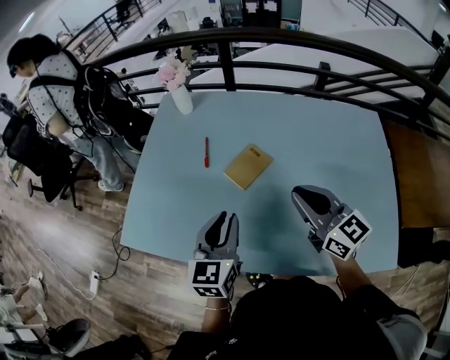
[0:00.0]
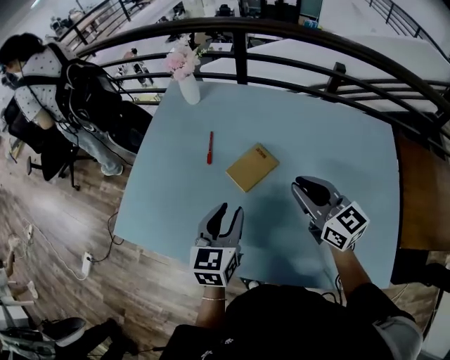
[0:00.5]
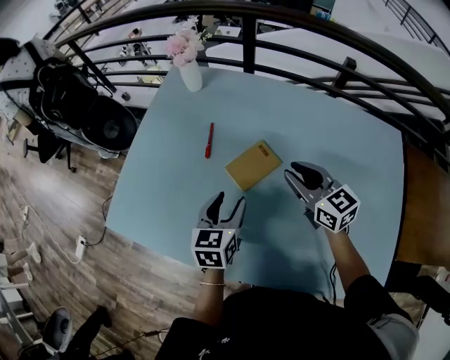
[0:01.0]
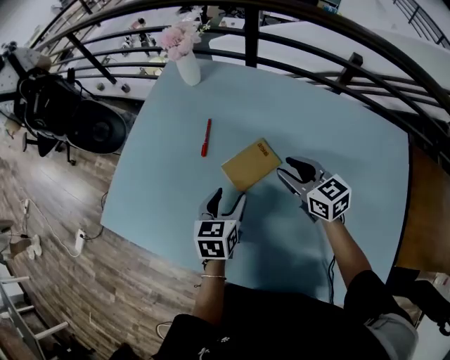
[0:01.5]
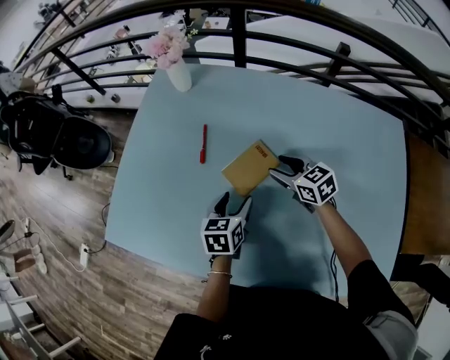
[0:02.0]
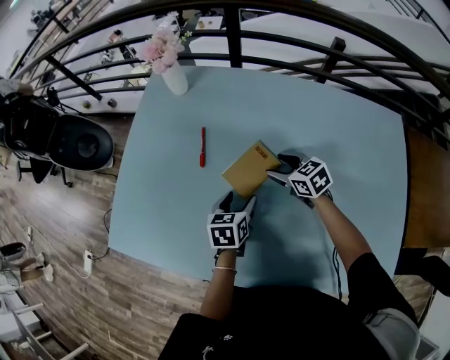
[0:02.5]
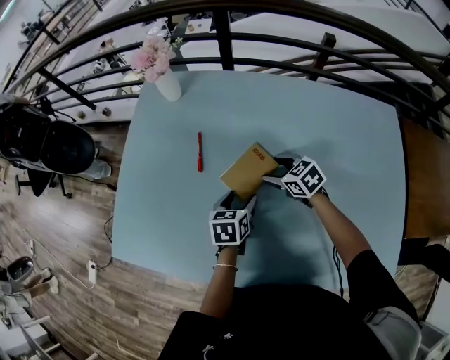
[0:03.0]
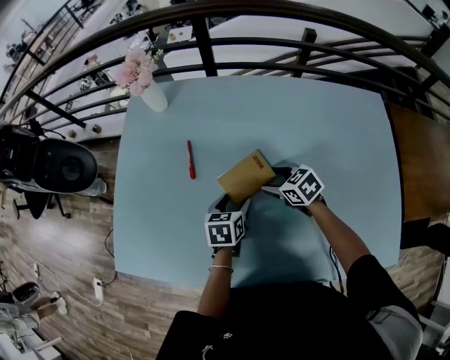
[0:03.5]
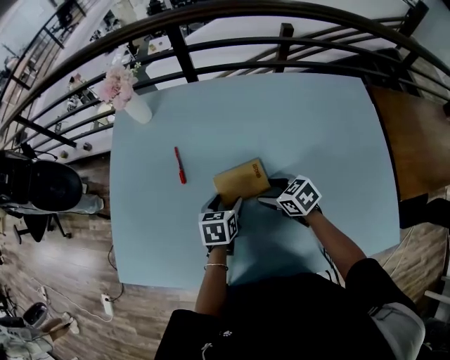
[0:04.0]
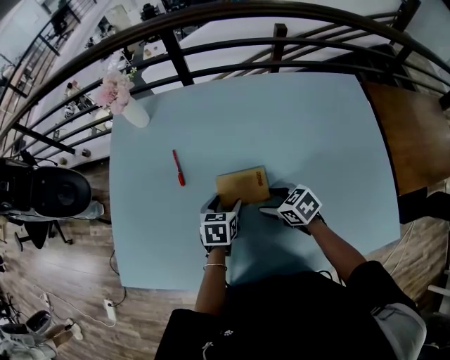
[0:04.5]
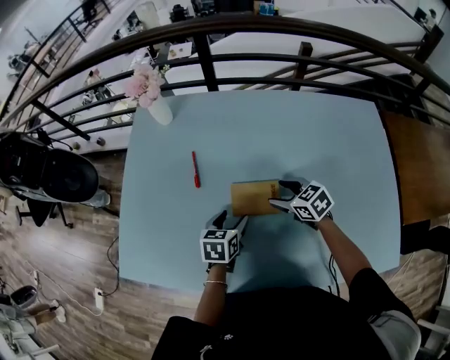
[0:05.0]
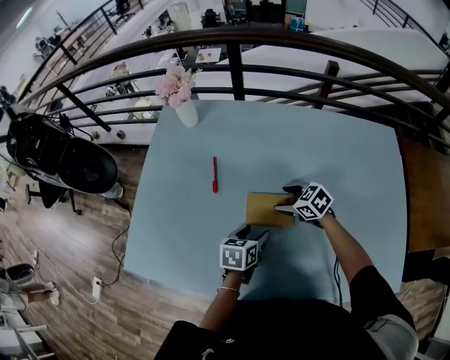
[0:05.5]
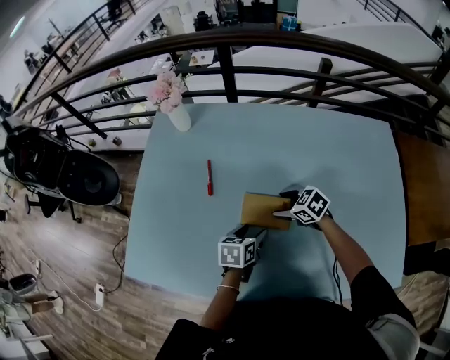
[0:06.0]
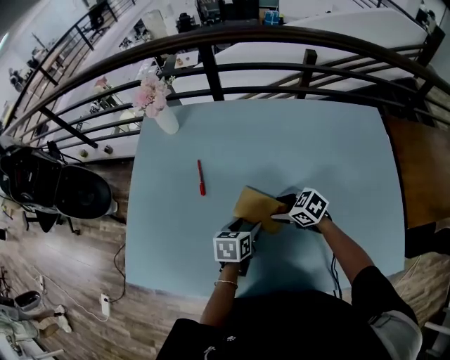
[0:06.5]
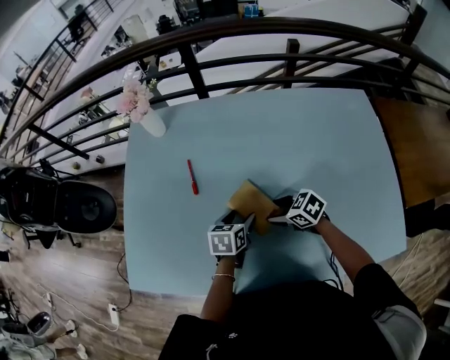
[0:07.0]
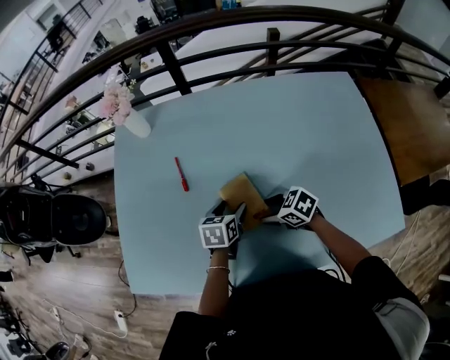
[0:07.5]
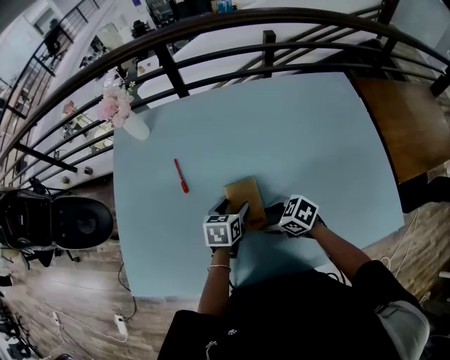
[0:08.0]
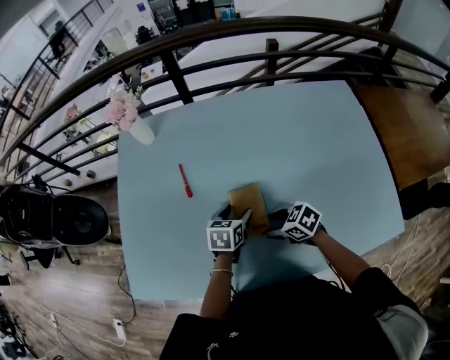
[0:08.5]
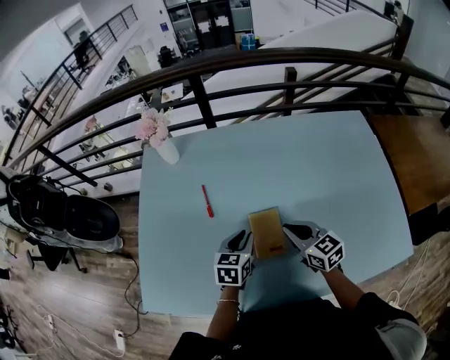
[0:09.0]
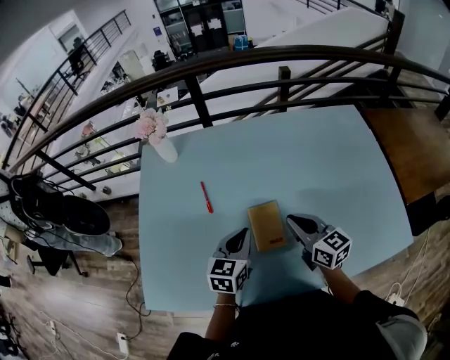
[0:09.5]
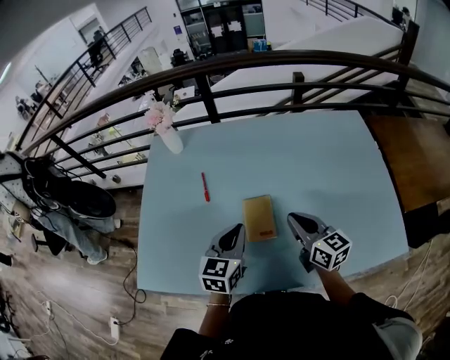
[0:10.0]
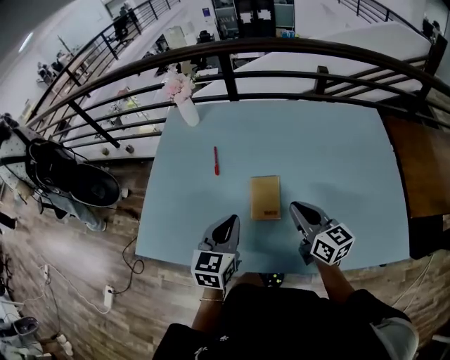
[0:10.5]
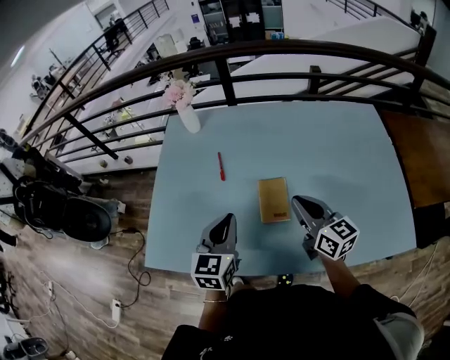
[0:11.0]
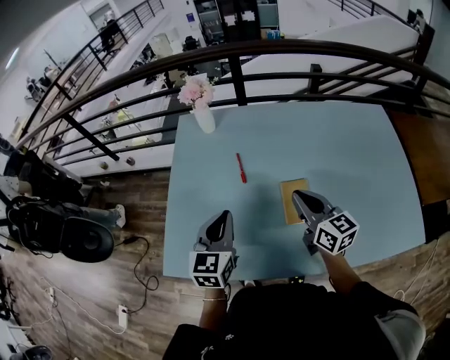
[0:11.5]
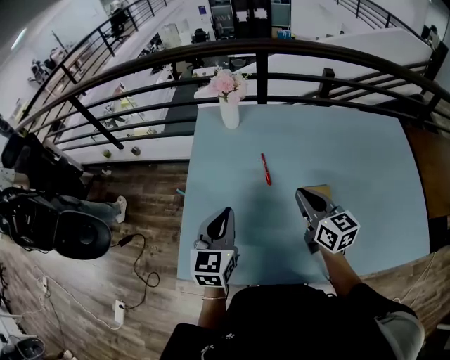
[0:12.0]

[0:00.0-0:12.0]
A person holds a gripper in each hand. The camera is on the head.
0:00.0 to 0:02.0: The two grippers go some 25 cm downward and forward. The right gripper rotates approximately 30 degrees, and opens up, while the left gripper rotates some 30 degrees, and opens.
0:02.0 to 0:04.0: The right gripper heads backward, covering some 10 cm.
0:04.0 to 0:06.0: The left gripper is displaced backward by approximately 5 cm.
0:06.0 to 0:08.0: The right gripper moves backward, approximately 10 cm.
0:08.0 to 0:10.0: The right gripper shifts roughly 20 cm upward, points its fingers about 40 degrees further upward, and closes its fingers, while the left gripper is displaced upward and backward by approximately 20 cm, turns by approximately 30 degrees, and closes.
0:10.0 to 0:12.0: The right gripper is displaced to the left and forward by roughly 25 cm, while the left gripper goes about 30 cm to the left.

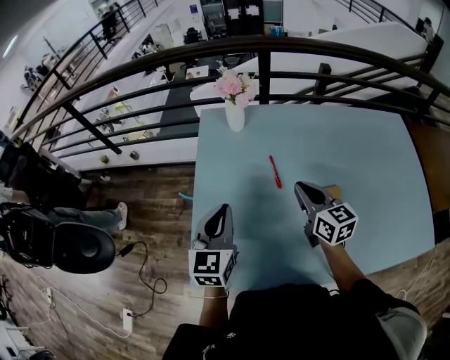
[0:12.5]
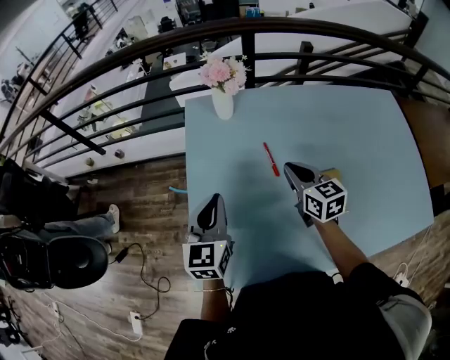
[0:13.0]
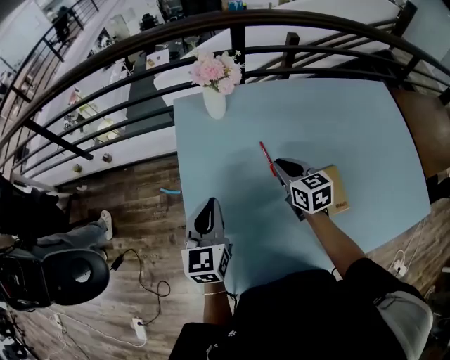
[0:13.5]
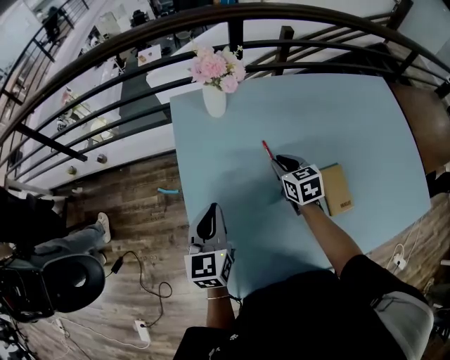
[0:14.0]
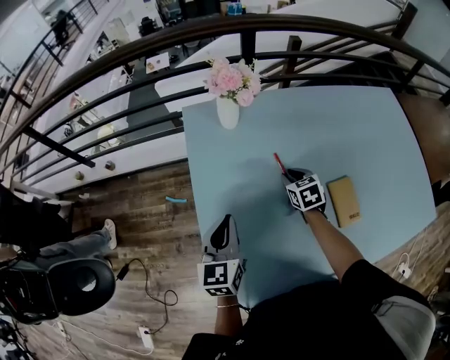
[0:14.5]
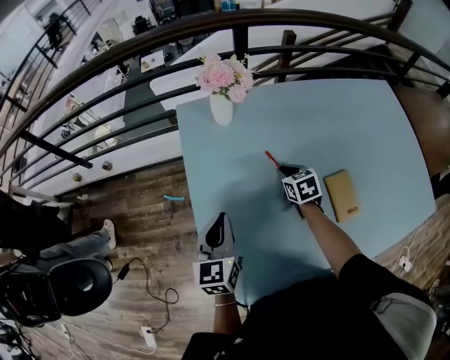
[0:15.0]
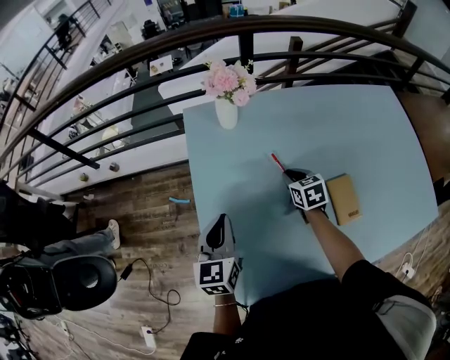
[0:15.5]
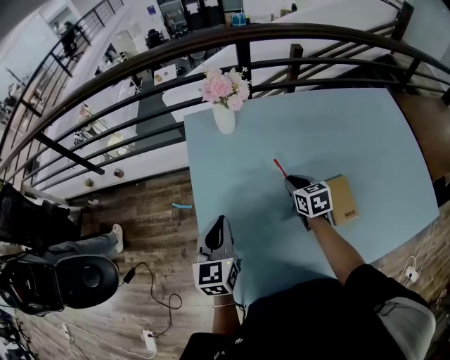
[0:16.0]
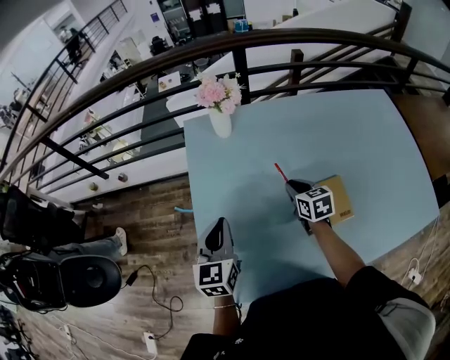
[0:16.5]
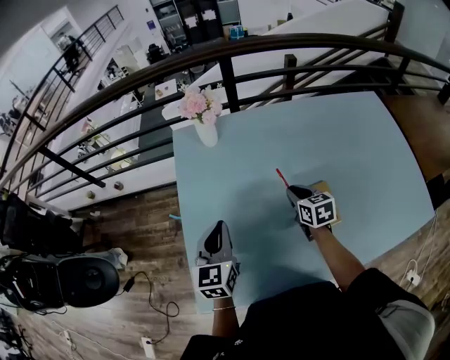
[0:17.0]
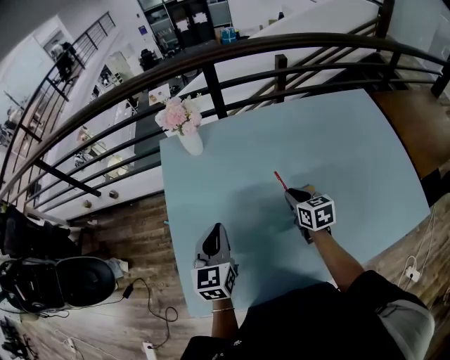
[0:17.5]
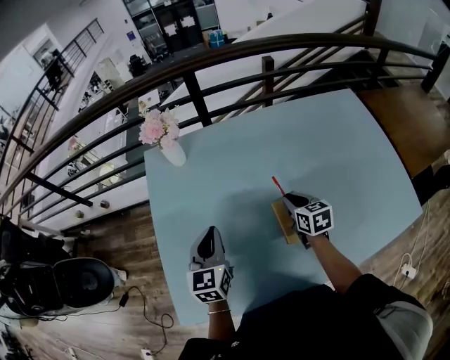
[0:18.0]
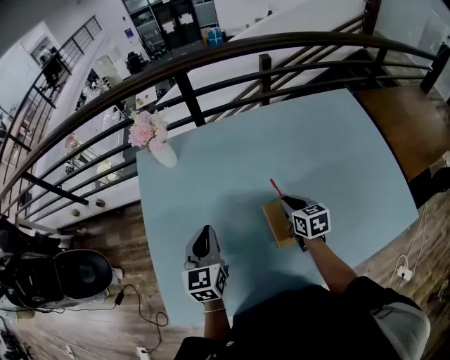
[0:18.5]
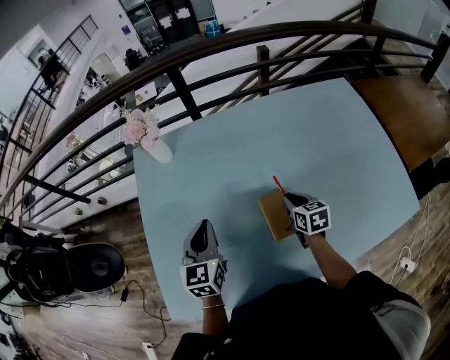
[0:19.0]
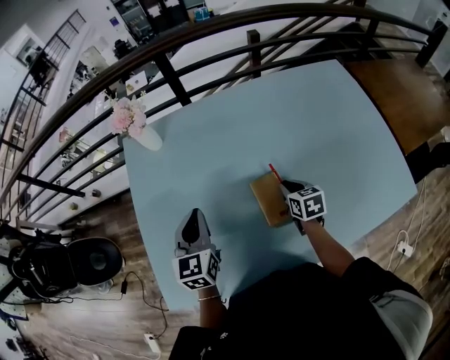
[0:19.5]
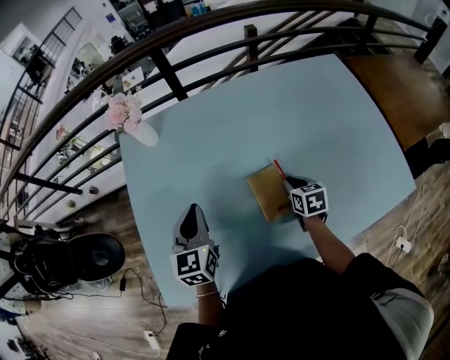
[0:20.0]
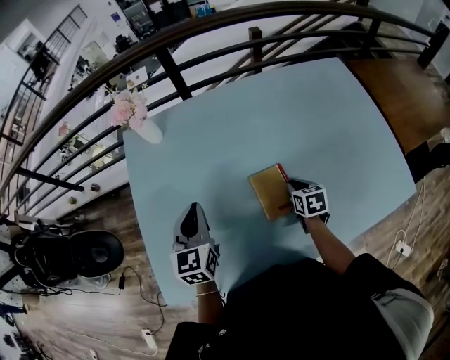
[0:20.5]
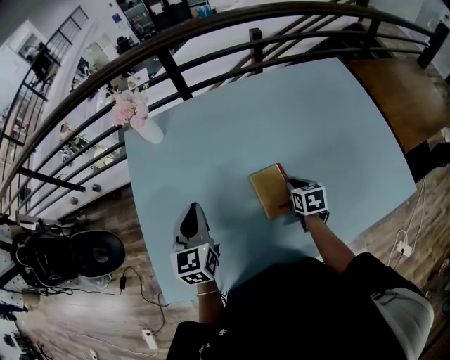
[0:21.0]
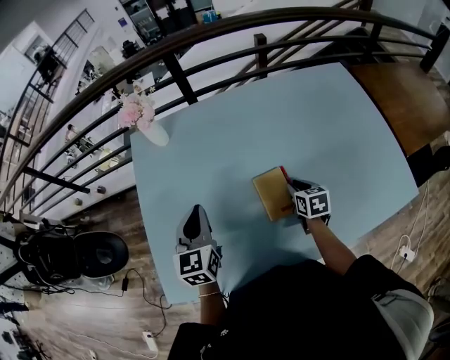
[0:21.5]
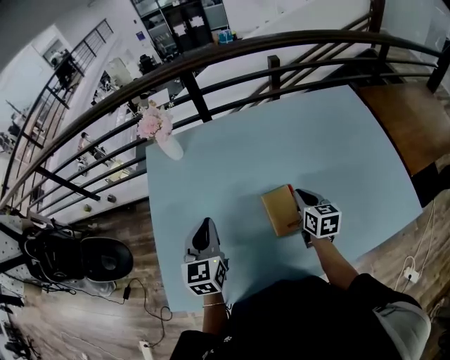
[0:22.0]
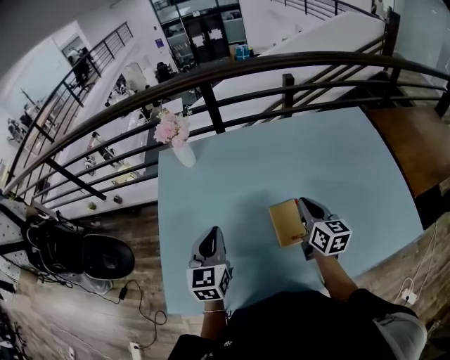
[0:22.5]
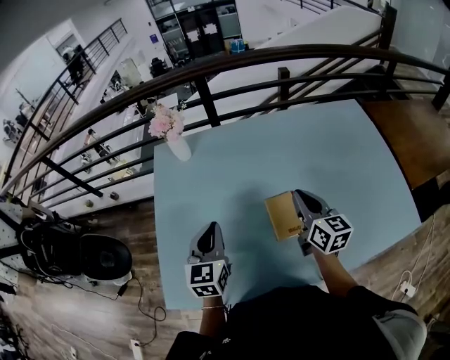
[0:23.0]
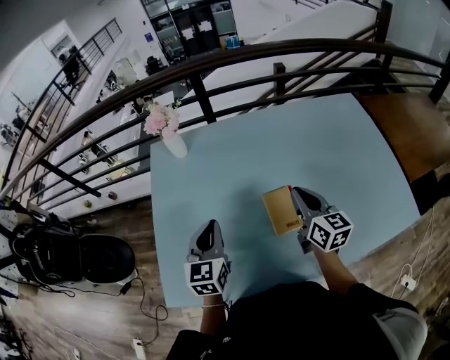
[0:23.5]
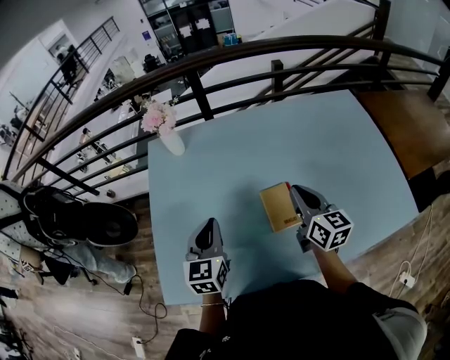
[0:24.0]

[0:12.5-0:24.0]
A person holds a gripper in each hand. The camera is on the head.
0:12.5 to 0:14.5: The right gripper shifts some 20 cm downward and forward, and angles its fingers downward, by approximately 30 degrees. Meanwhile the left gripper goes roughly 10 cm forward, downward and to the left.
0:14.5 to 0:16.5: The right gripper travels backward and upward by approximately 10 cm. Meanwhile the left gripper changes place by some 5 cm.
0:16.5 to 0:18.5: Both grippers move to the right, approximately 20 cm.
0:18.5 to 0:20.0: The right gripper moves to the right and downward, roughly 10 cm.
0:20.0 to 0:22.0: The right gripper moves upward, roughly 10 cm.
0:22.0 to 0:24.0: The right gripper heads upward, covering some 10 cm.

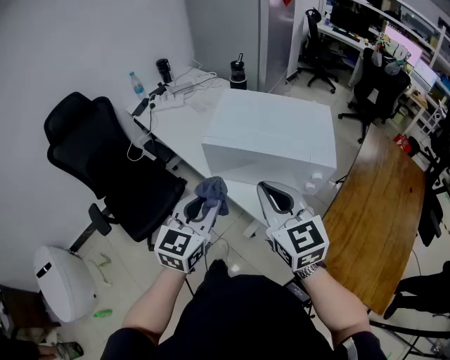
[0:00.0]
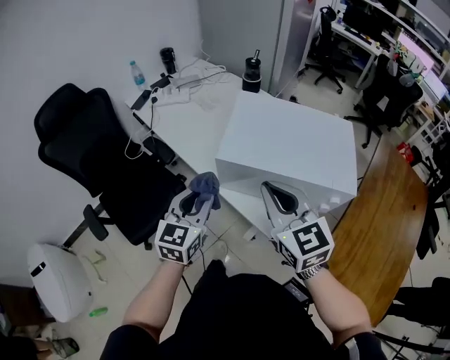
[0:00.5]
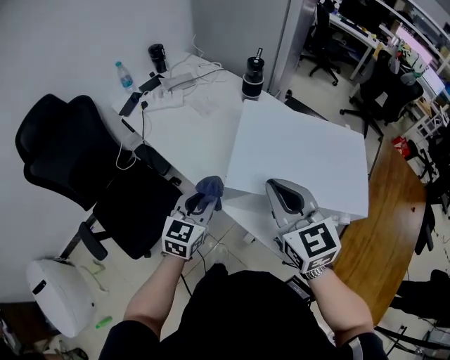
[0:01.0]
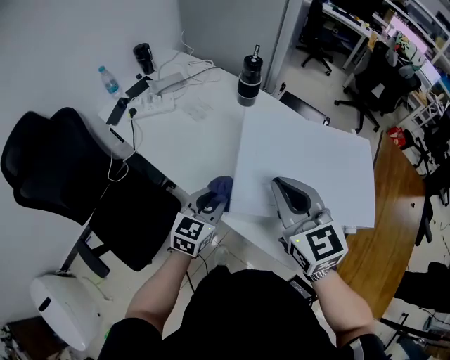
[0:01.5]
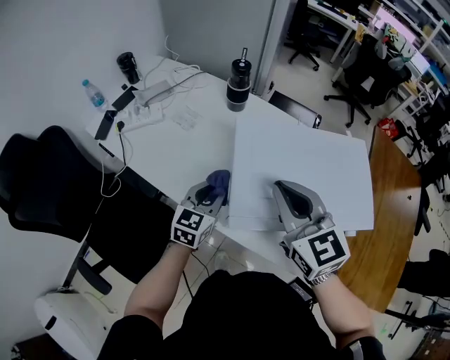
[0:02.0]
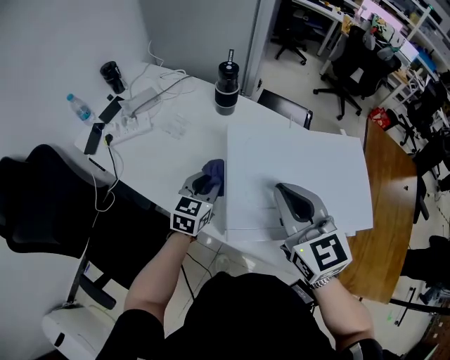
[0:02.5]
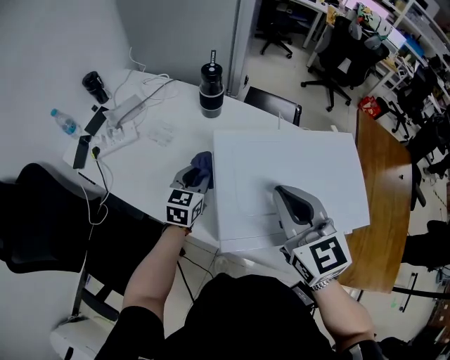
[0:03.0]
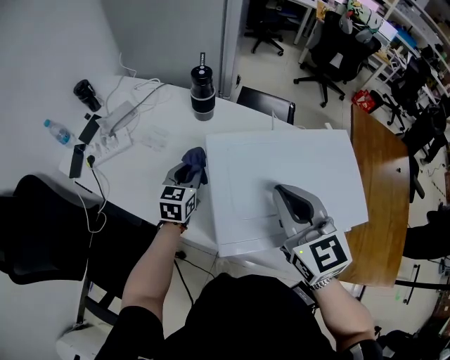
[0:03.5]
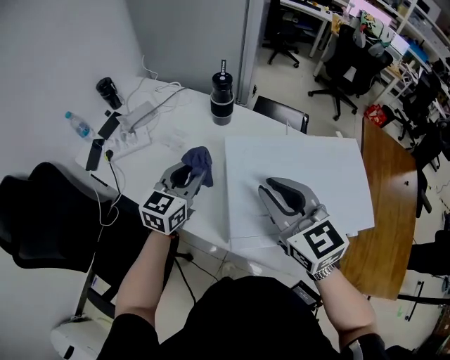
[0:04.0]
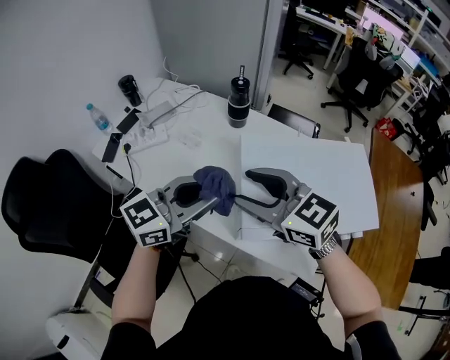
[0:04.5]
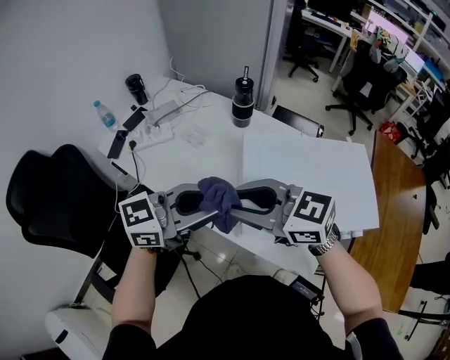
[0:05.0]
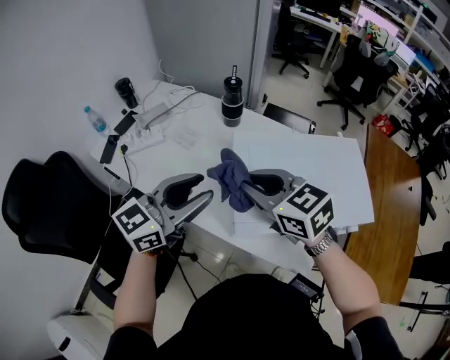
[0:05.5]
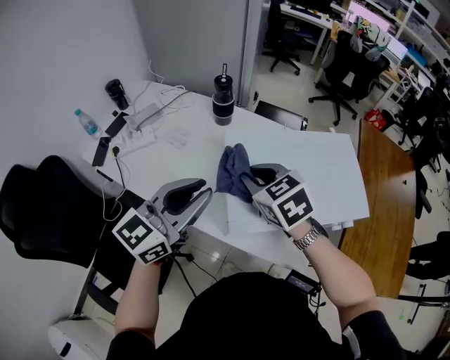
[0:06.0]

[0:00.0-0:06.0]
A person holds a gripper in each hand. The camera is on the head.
0:00.0 to 0:02.0: The left gripper shifts about 35 cm forward and downward. Meanwhile the right gripper shifts approximately 25 cm forward.
0:02.0 to 0:04.0: The left gripper shifts some 10 cm forward and upward.
0:04.0 to 0:06.0: The right gripper moves downward, approximately 5 cm, turns by about 20 degrees, and opens and closes again. The left gripper ends up roughly 20 cm from where it was.
